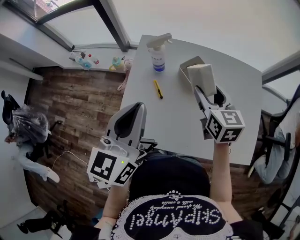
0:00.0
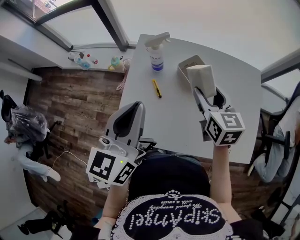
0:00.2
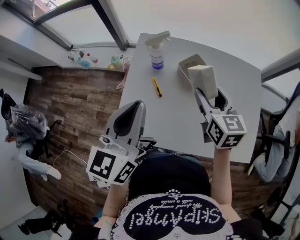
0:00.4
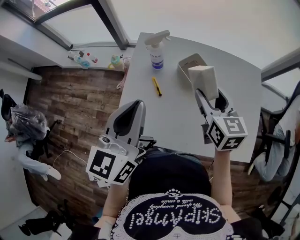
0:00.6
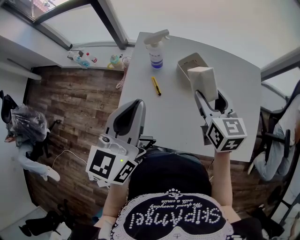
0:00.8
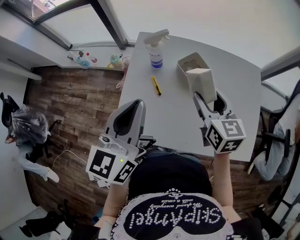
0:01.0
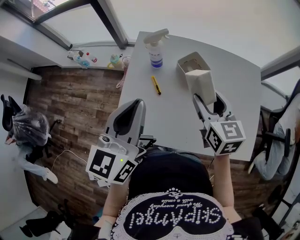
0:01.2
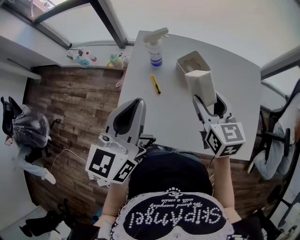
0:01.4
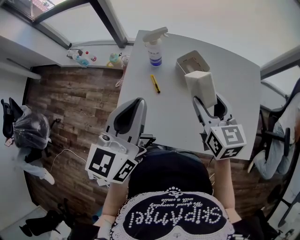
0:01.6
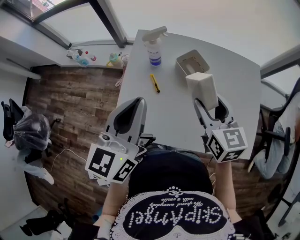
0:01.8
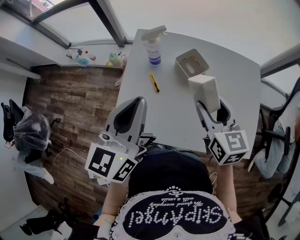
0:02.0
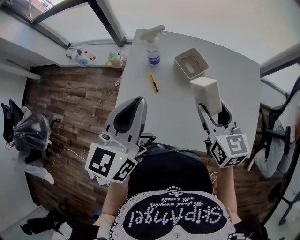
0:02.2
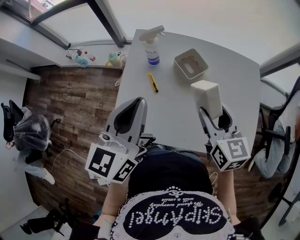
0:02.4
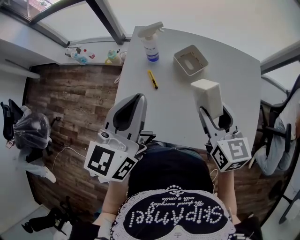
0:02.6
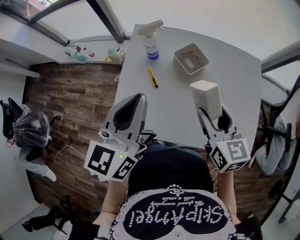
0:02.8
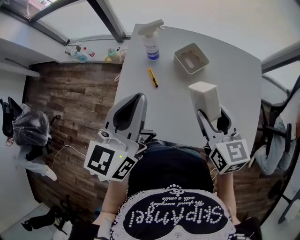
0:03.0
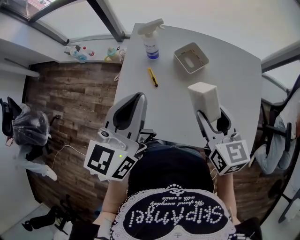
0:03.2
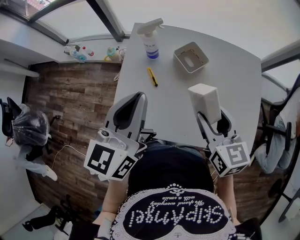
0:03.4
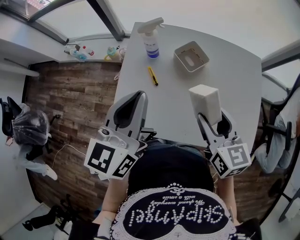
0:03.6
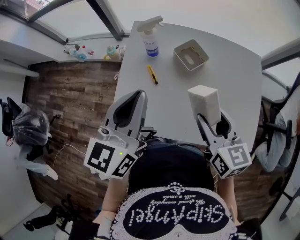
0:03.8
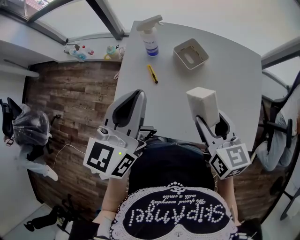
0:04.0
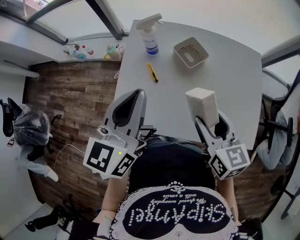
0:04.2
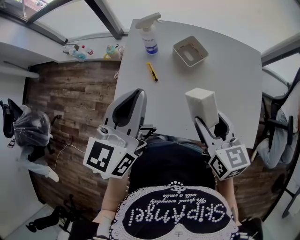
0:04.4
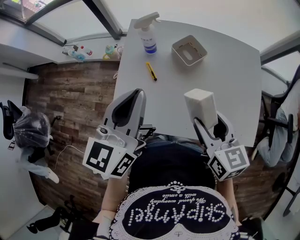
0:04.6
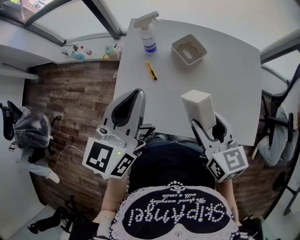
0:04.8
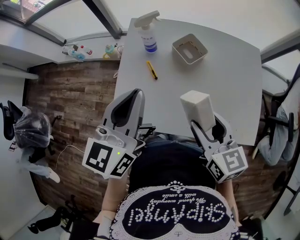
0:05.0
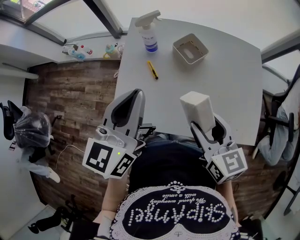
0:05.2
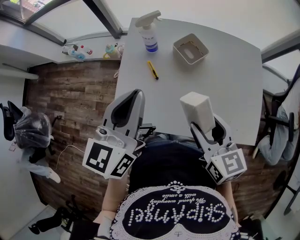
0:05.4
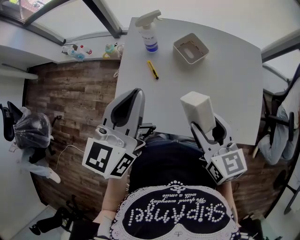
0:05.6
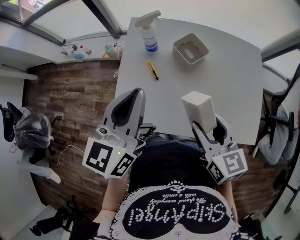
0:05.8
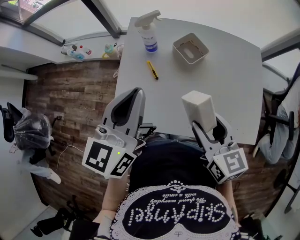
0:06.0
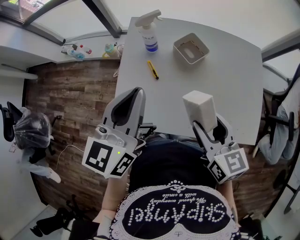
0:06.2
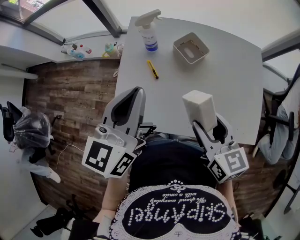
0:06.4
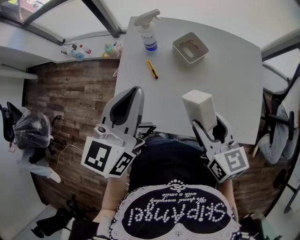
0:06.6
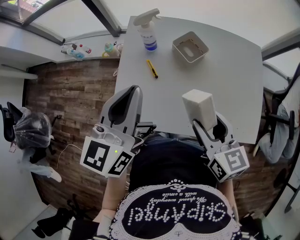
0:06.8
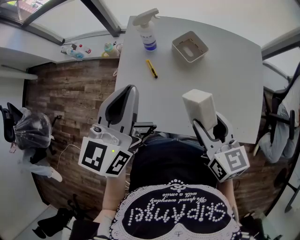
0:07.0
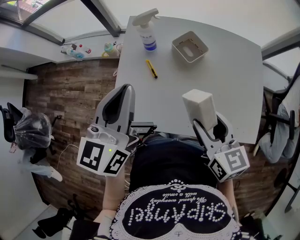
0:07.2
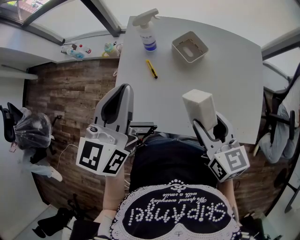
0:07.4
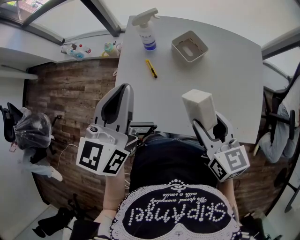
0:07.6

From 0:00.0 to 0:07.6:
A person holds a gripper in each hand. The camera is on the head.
From 0:00.0 to 0:01.6: The right gripper moves backward, approximately 5 cm.
From 0:01.6 to 0:03.0: The right gripper is displaced backward by about 5 cm.
From 0:03.0 to 0:04.6: The right gripper moves backward, approximately 5 cm.
From 0:04.6 to 0:07.6: The grippers make only small movements.

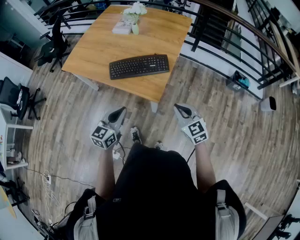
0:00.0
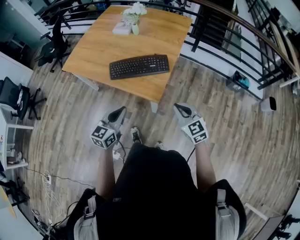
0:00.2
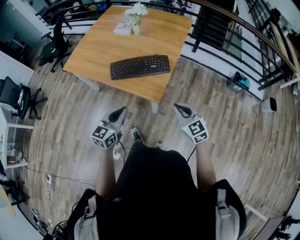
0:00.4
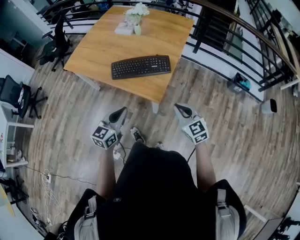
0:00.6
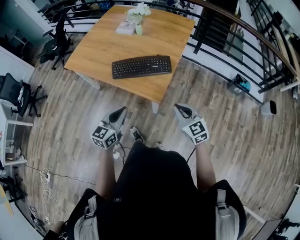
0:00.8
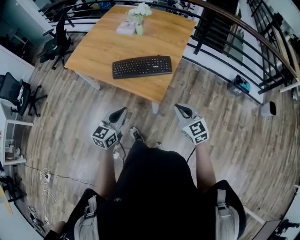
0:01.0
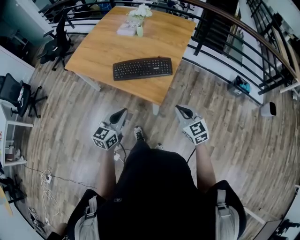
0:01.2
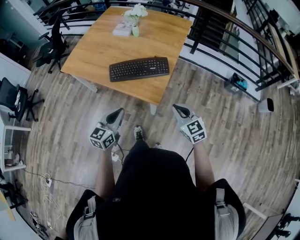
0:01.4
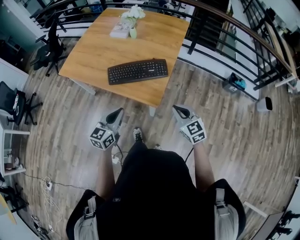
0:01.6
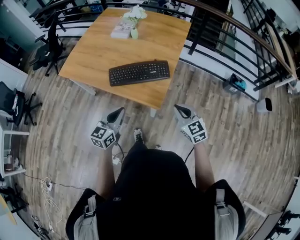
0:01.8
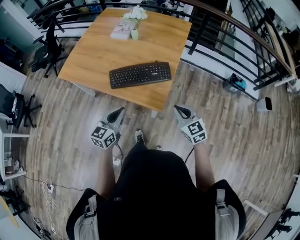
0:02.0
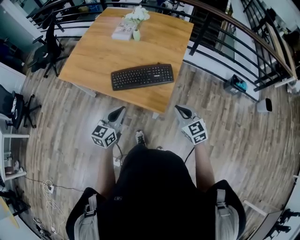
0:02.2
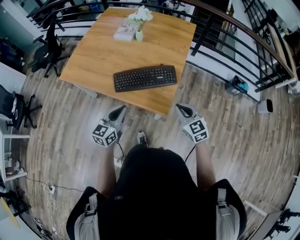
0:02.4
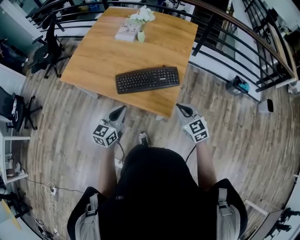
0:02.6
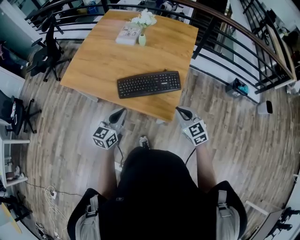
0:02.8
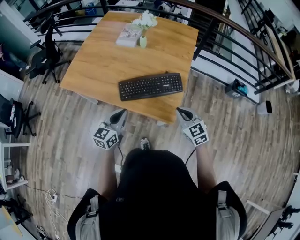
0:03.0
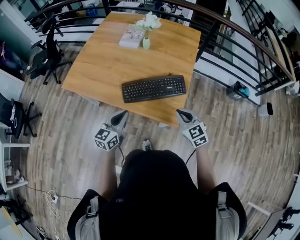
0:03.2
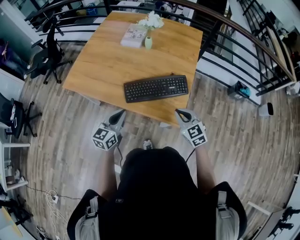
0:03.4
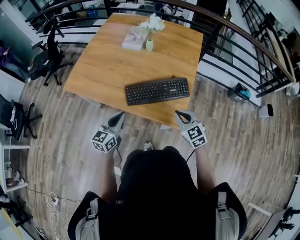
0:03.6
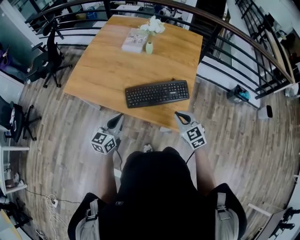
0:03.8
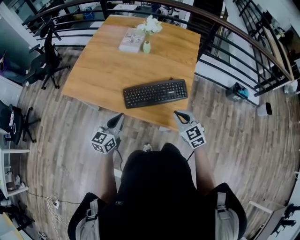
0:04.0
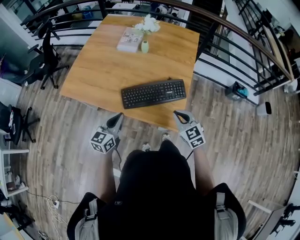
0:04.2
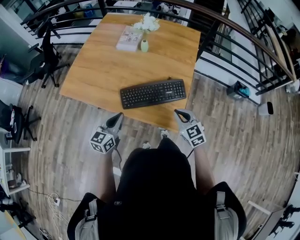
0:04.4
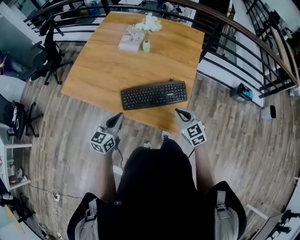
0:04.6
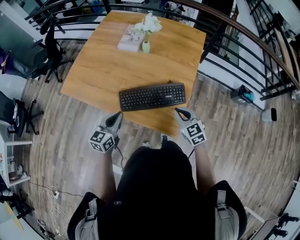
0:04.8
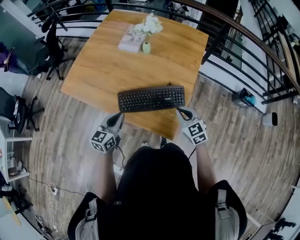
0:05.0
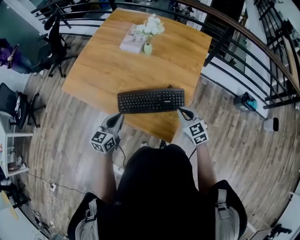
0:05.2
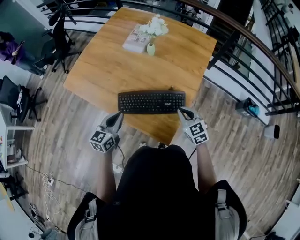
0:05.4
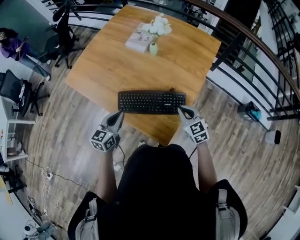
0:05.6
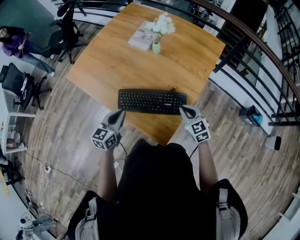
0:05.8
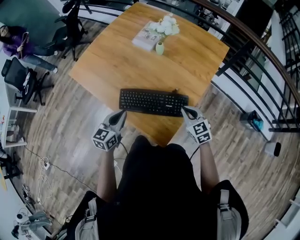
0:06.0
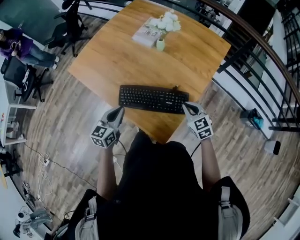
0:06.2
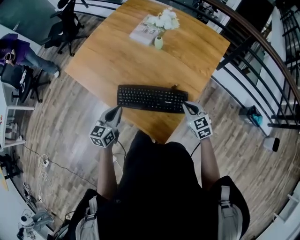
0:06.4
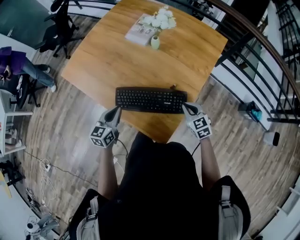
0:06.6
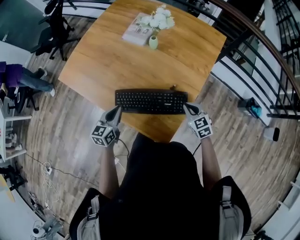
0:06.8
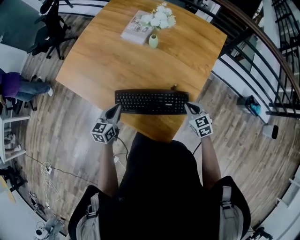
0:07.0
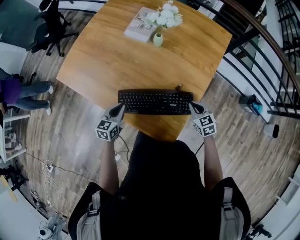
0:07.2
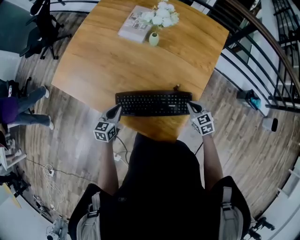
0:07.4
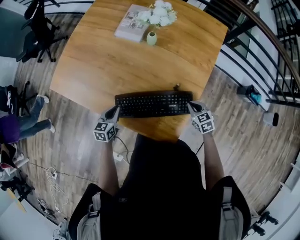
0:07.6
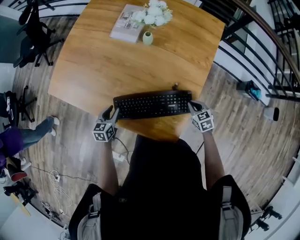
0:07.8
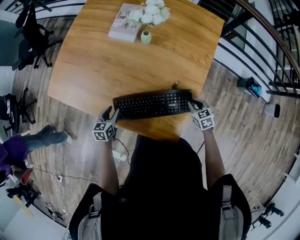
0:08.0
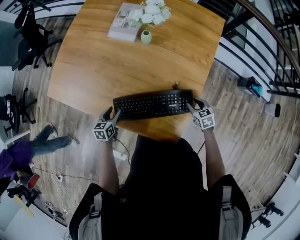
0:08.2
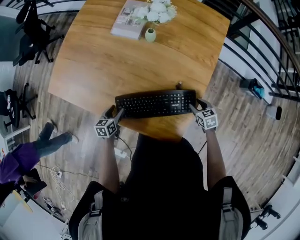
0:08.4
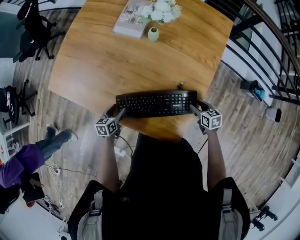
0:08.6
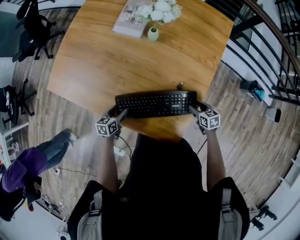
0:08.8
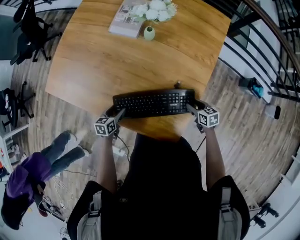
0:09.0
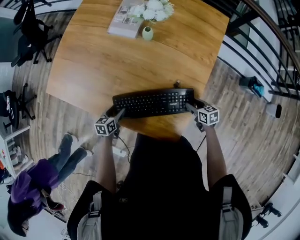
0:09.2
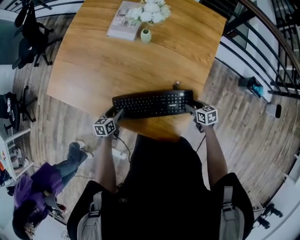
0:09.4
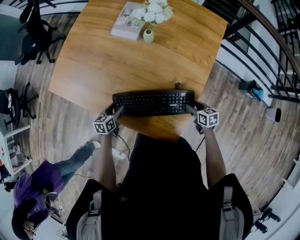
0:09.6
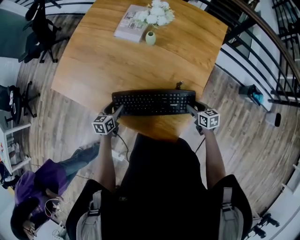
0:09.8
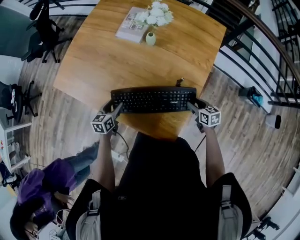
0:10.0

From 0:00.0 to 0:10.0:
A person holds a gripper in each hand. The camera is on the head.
From 0:00.0 to 0:01.4: The grippers move only a little.
From 0:01.4 to 0:02.8: The two grippers go some 15 cm forward and to the left.
From 0:02.8 to 0:04.2: The left gripper heads to the left and forward, covering some 10 cm. Meanwhile the right gripper moves to the left, approximately 5 cm.
From 0:04.2 to 0:05.8: The left gripper is displaced to the right and forward by about 15 cm; the right gripper shifts roughly 20 cm forward and to the right.
From 0:05.8 to 0:07.2: The grippers both shift downward and forward by approximately 15 cm.
From 0:07.2 to 0:08.6: Both grippers travel together downward, some 10 cm. The right gripper changes its angle by approximately 30 degrees, and opens up; the left gripper changes its angle by roughly 20 degrees, and opens up.
From 0:08.6 to 0:10.0: The left gripper travels upward by roughly 10 cm. The right gripper travels upward by some 5 cm.

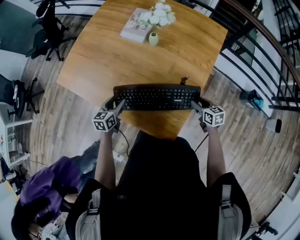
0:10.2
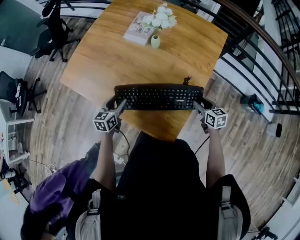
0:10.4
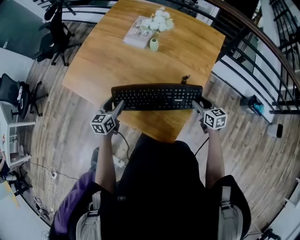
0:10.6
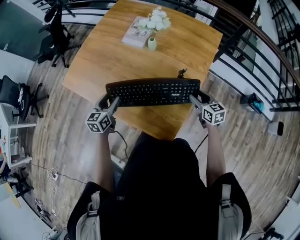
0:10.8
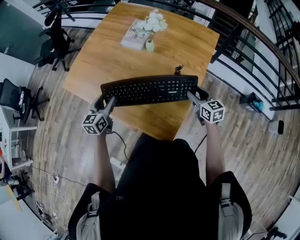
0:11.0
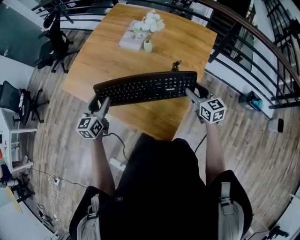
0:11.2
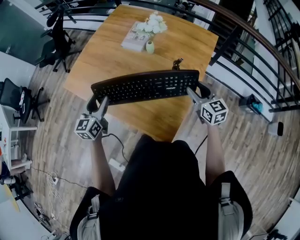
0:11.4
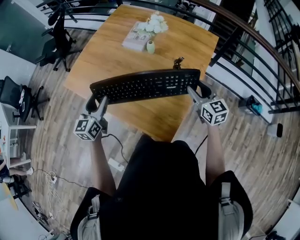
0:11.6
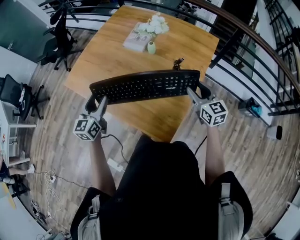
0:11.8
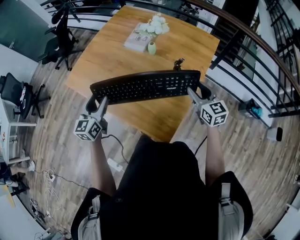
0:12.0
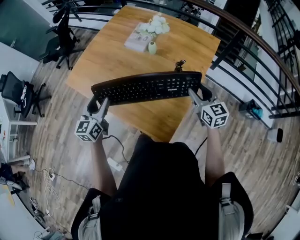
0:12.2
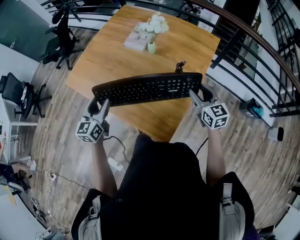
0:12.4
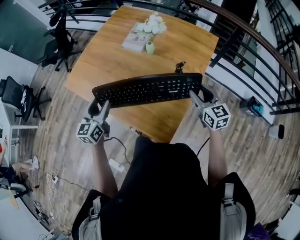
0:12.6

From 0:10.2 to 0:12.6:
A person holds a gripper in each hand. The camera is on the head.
From 0:10.2 to 0:11.4: Both grippers move upward, some 20 cm. The left gripper rotates some 20 degrees. The right gripper changes its angle by about 30 degrees.
From 0:11.4 to 0:12.6: The grippers move only a little.

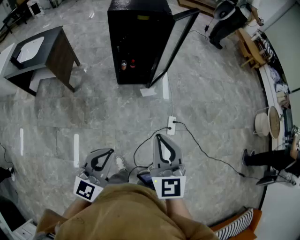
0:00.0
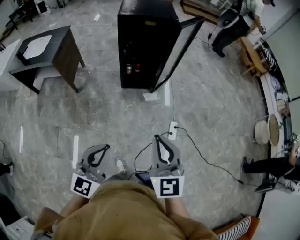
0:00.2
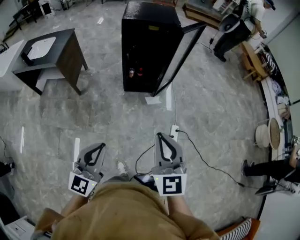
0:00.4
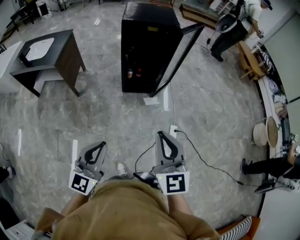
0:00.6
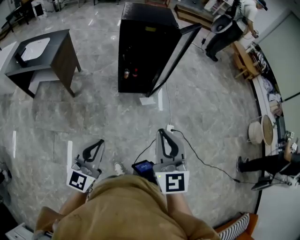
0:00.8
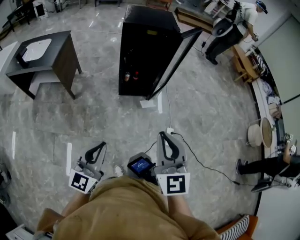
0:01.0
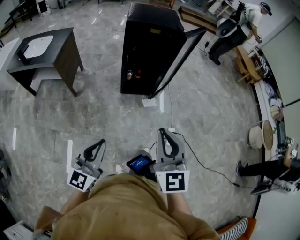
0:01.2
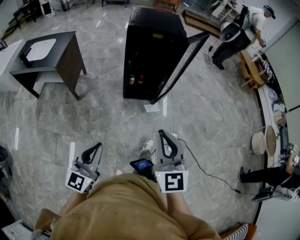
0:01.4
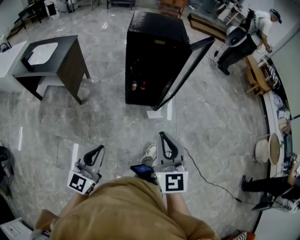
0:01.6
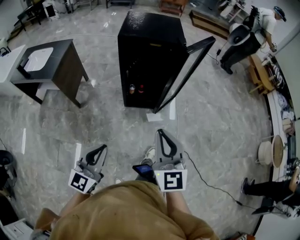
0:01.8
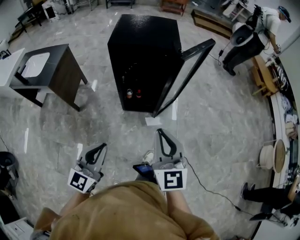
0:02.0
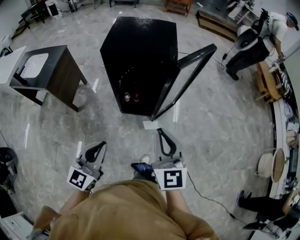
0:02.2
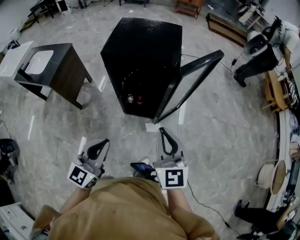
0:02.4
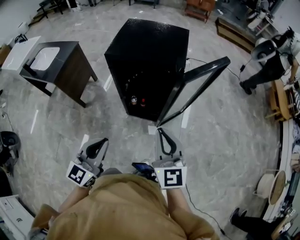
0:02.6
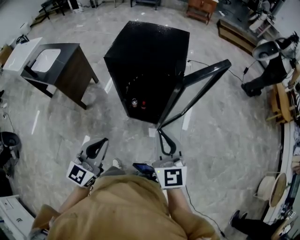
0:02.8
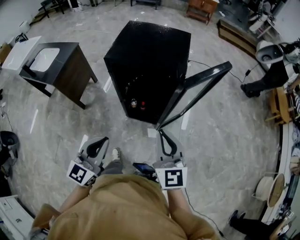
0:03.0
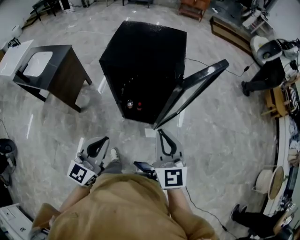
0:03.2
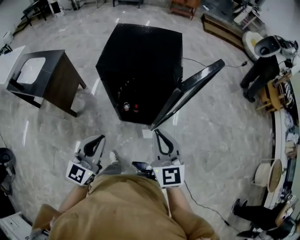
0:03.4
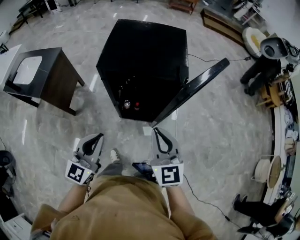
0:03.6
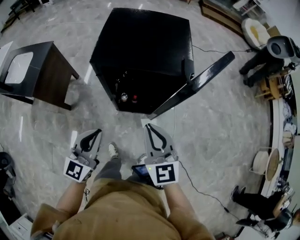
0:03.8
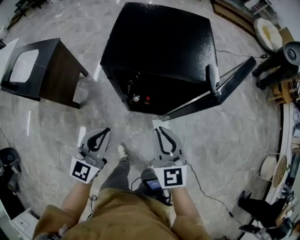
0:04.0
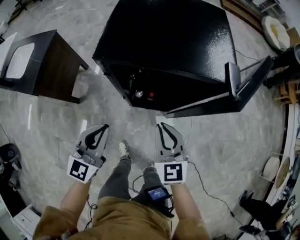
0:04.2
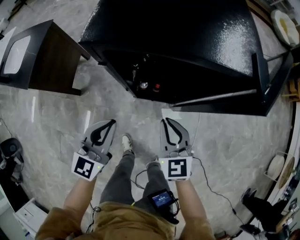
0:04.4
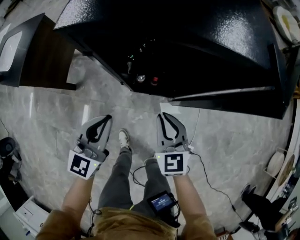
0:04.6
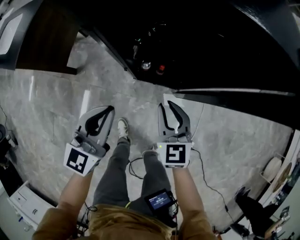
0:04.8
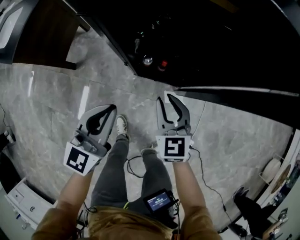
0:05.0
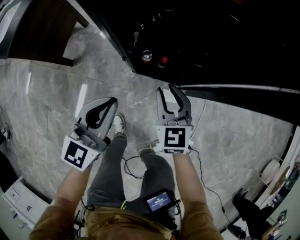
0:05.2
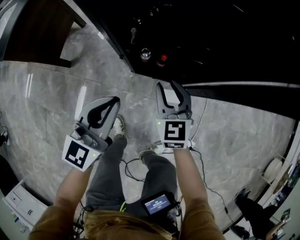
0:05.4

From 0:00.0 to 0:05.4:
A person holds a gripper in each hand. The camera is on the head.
From 0:00.0 to 0:01.4: The right gripper moves to the left, approximately 10 cm; the left gripper moves to the left, about 15 cm.
From 0:01.4 to 0:02.8: Both grippers are carried forward and to the right, roughly 40 cm.
From 0:02.8 to 0:04.0: The right gripper is displaced to the left, forward and downward by some 20 cm. Meanwhile the left gripper heads forward, to the left and downward, covering roughly 25 cm.
From 0:04.0 to 0:05.4: Both grippers travel together downward, about 35 cm. The right gripper opens its fingers.
